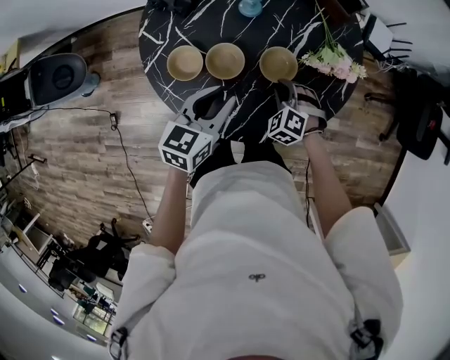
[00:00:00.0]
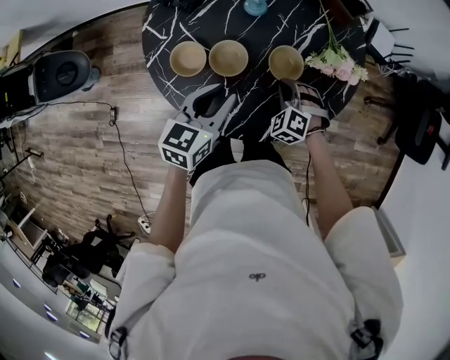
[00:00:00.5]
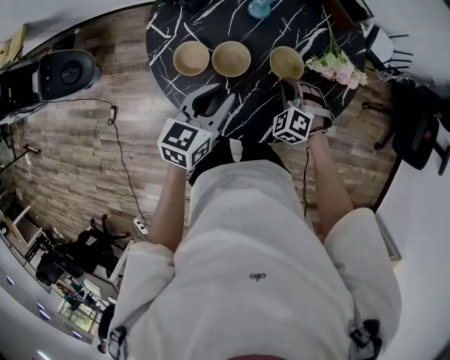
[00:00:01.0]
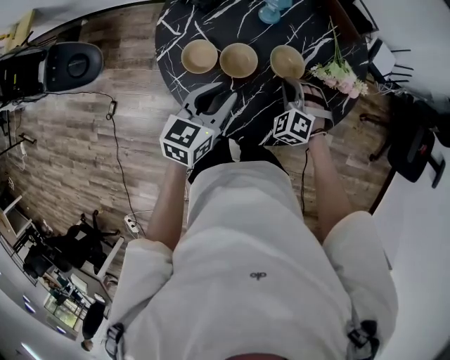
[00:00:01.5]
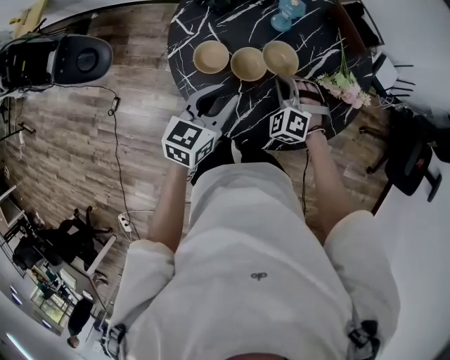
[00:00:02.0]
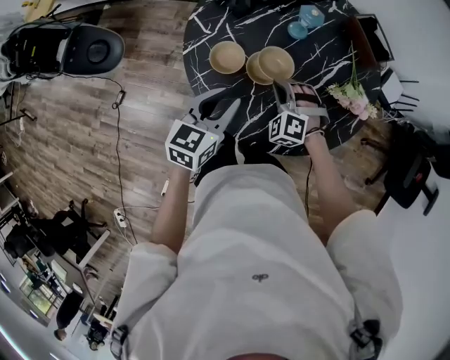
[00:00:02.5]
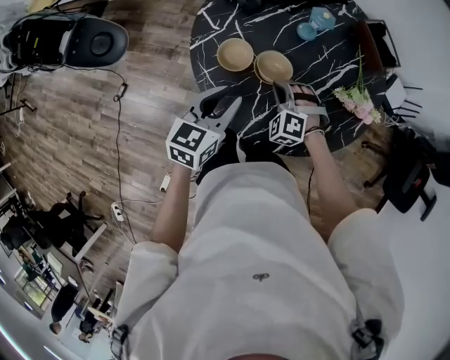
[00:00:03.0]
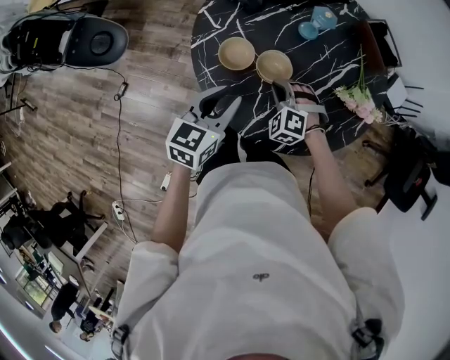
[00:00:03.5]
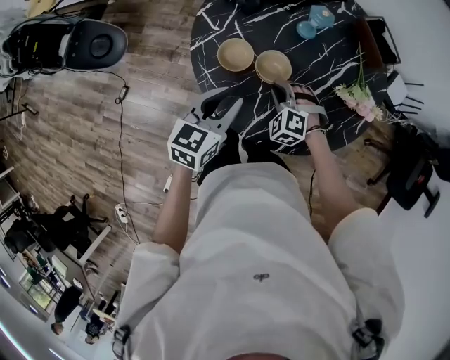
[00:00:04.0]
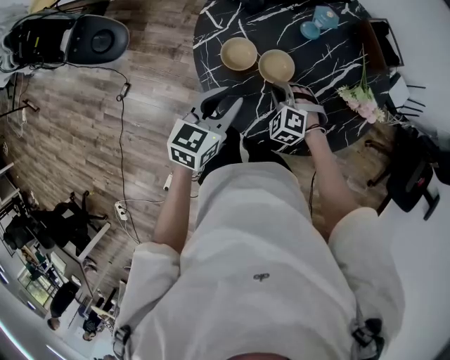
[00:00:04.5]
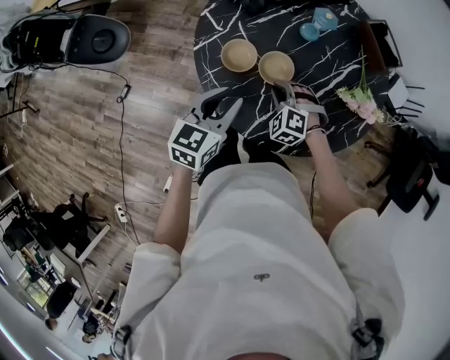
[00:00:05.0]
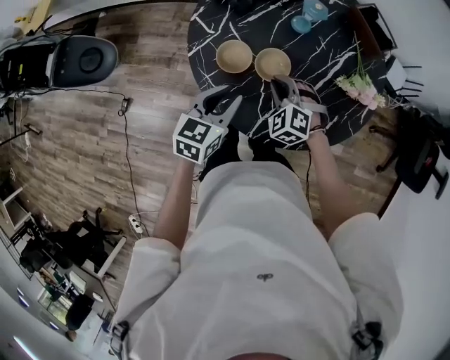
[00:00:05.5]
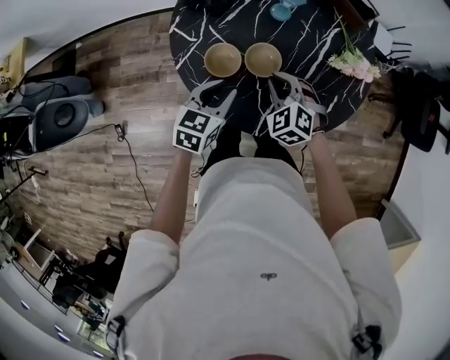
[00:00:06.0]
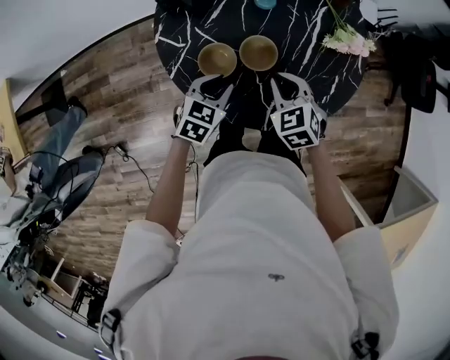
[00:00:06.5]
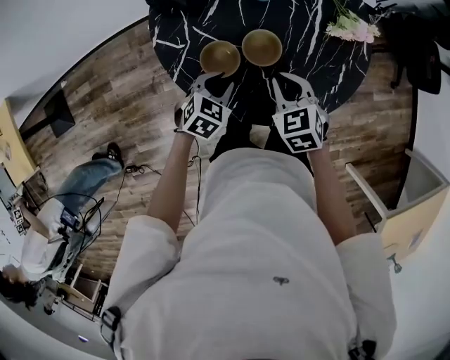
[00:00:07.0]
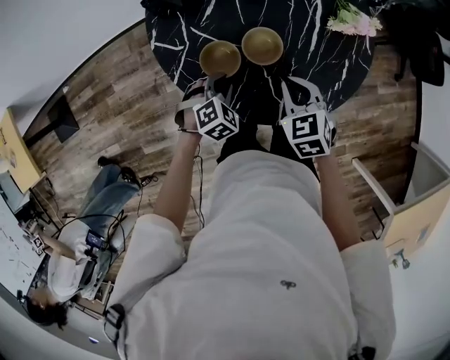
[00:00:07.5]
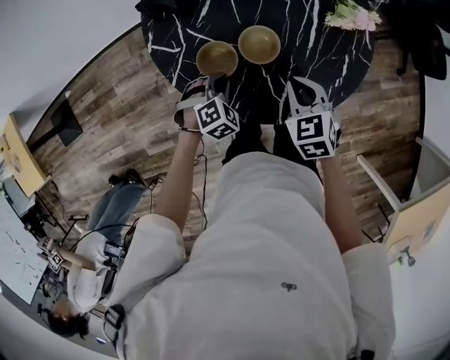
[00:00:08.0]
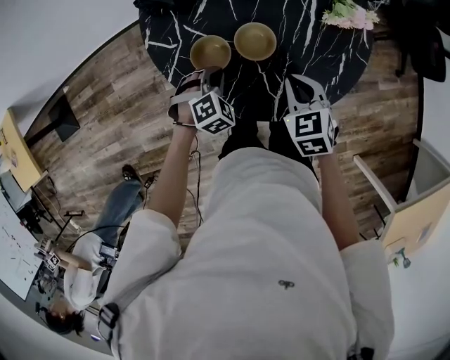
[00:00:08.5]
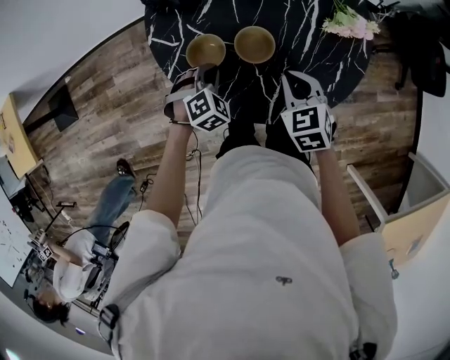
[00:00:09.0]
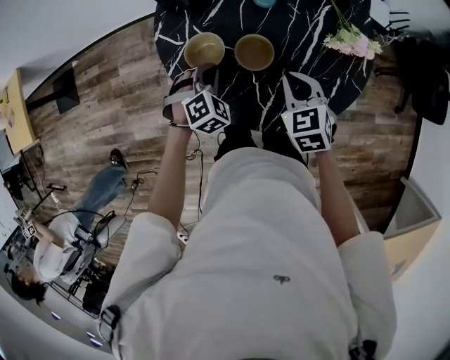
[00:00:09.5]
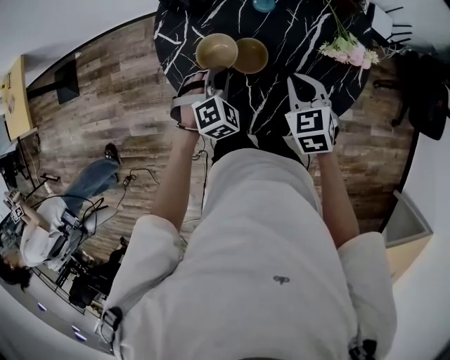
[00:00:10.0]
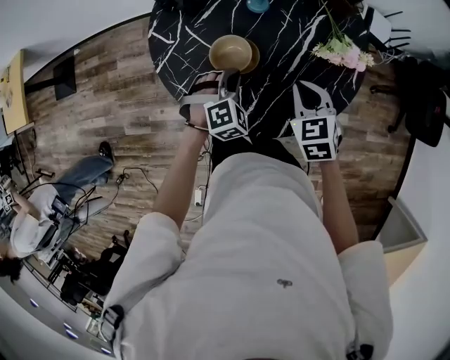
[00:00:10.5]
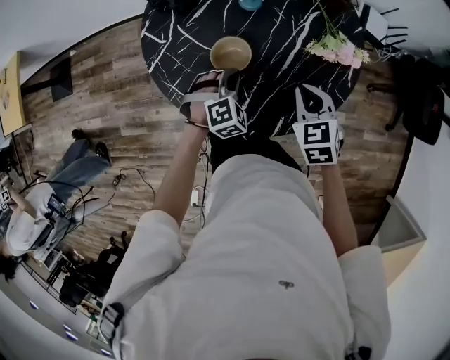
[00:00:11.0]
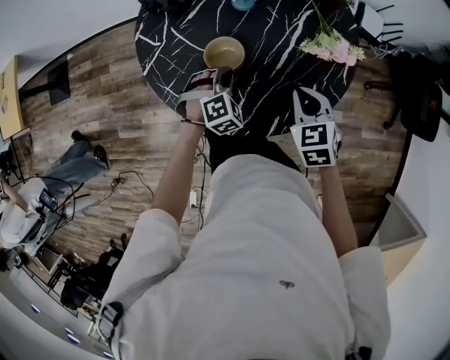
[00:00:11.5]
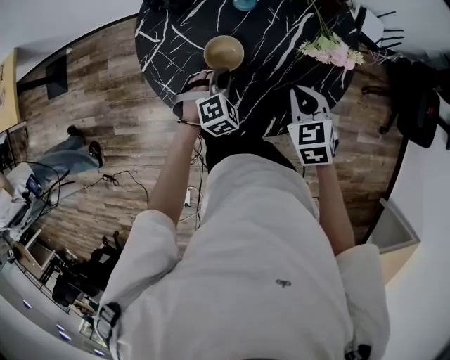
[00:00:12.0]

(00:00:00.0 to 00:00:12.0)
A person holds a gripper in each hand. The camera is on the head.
00:00:00.0 - 00:00:02.0: The left gripper changes place by some 5 cm. Meanwhile the right gripper moves to the left and upward, some 10 cm, and changes its angle by some 20 degrees.
00:00:02.0 - 00:00:04.0: The two grippers go some 5 cm to the left.
00:00:04.0 - 00:00:06.0: The left gripper heads downward, covering some 5 cm, while the right gripper is displaced upward by roughly 5 cm, and turns by roughly 30 degrees.
00:00:06.0 - 00:00:08.0: The left gripper is displaced downward by some 15 cm, and rotates around the line of its fingers by roughly 50 degrees, clockwise from behind, while the right gripper moves approximately 5 cm, and changes its angle by about 40 degrees.
00:00:08.0 - 00:00:10.0: The left gripper moves upward and to the right, roughly 10 cm. Meanwhile the right gripper moves to the right, about 5 cm.
00:00:10.0 - 00:00:12.0: The grippers both shift to the right by roughly 10 cm.

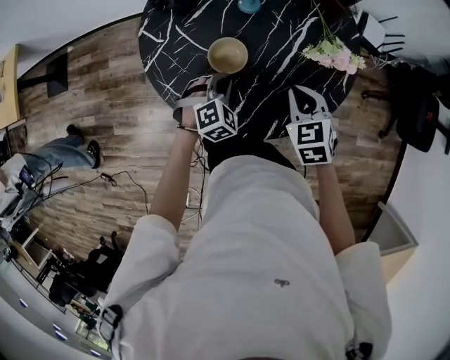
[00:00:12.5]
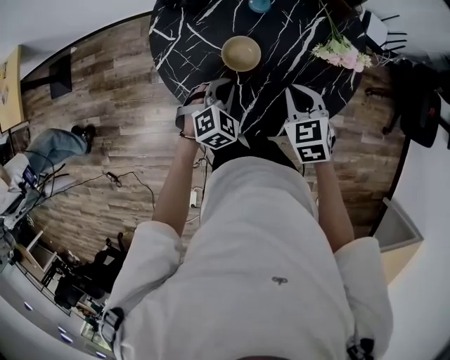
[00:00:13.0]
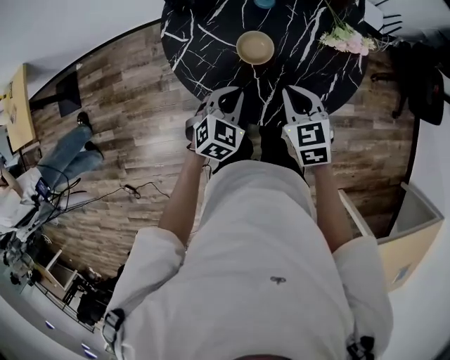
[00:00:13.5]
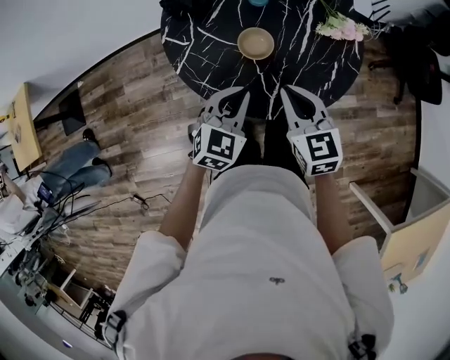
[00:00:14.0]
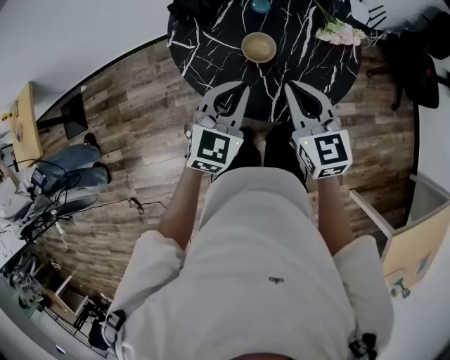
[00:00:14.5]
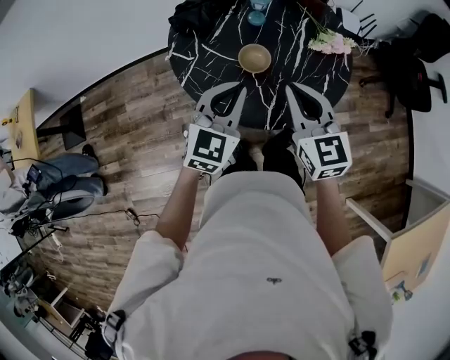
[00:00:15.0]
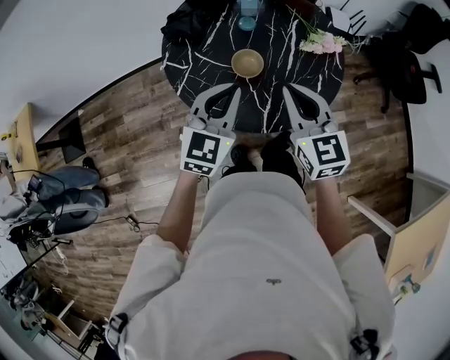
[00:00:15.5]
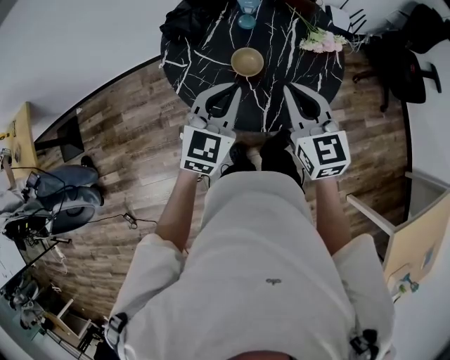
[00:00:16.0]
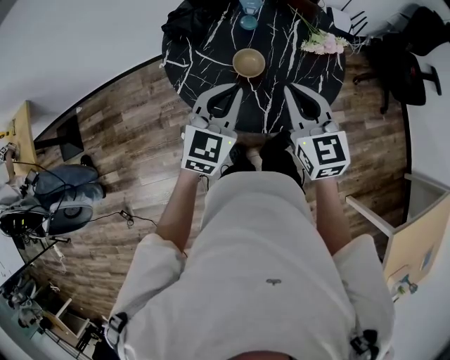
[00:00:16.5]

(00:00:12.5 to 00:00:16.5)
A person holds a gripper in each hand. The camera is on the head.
00:00:12.5 - 00:00:14.5: The right gripper travels upward, to the left and backward by roughly 25 cm, and rotates approximately 30 degrees, while the left gripper is displaced upward, backward and to the left by approximately 25 cm, and points its fingers approximately 30 degrees further upward.
00:00:14.5 - 00:00:16.5: The grippers stay close to where they were, moving slightly.

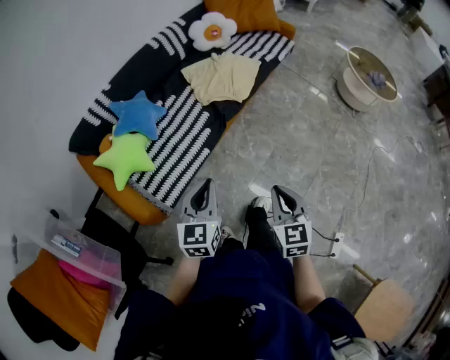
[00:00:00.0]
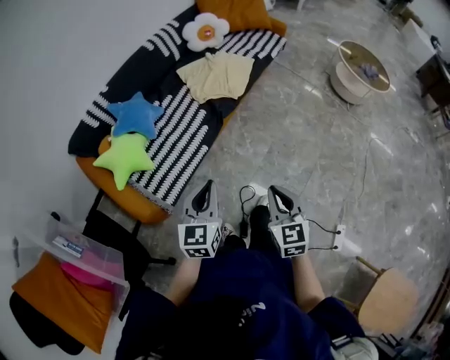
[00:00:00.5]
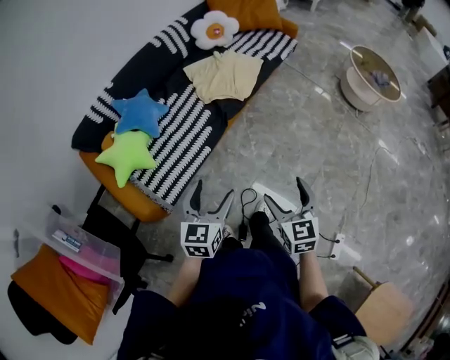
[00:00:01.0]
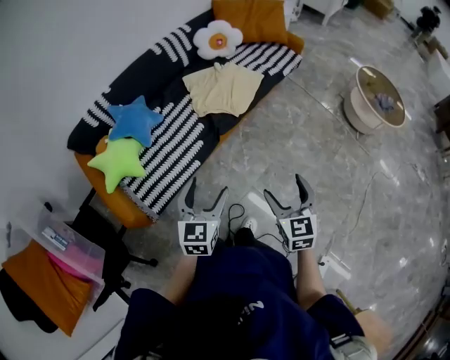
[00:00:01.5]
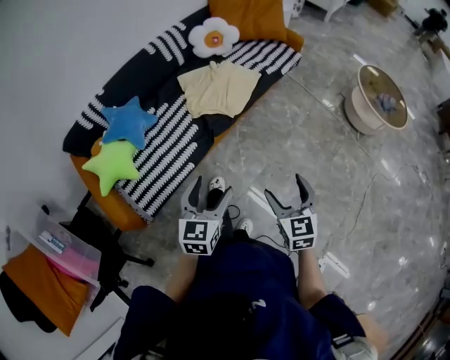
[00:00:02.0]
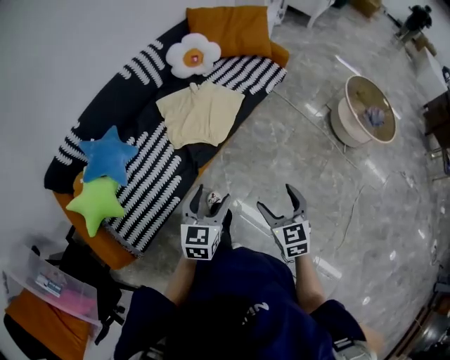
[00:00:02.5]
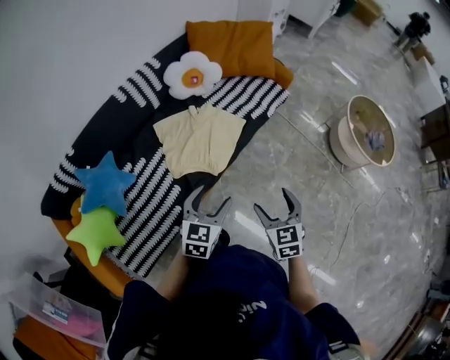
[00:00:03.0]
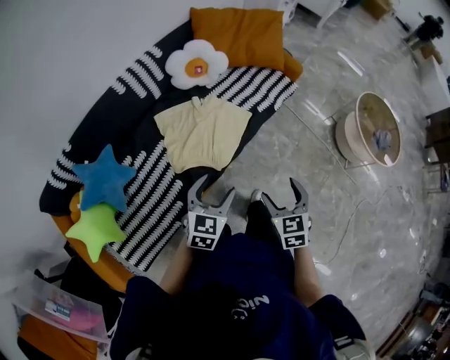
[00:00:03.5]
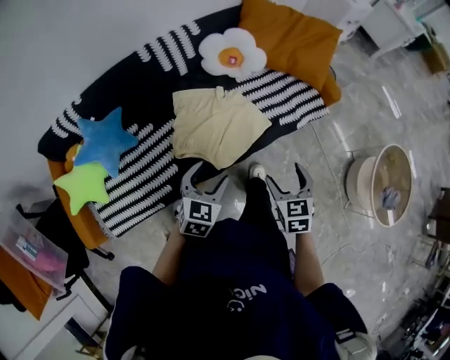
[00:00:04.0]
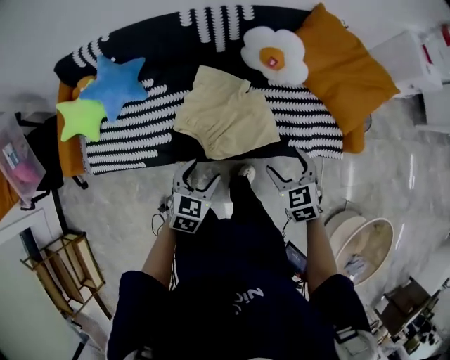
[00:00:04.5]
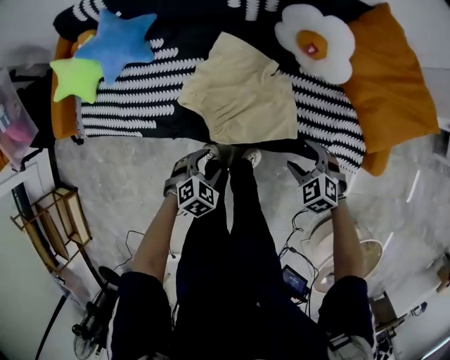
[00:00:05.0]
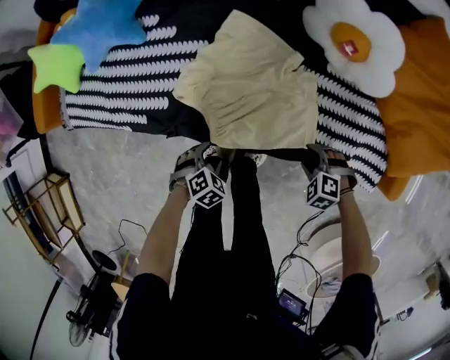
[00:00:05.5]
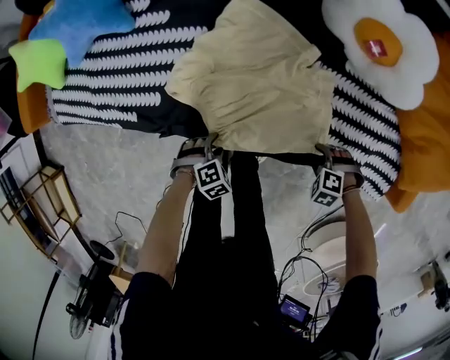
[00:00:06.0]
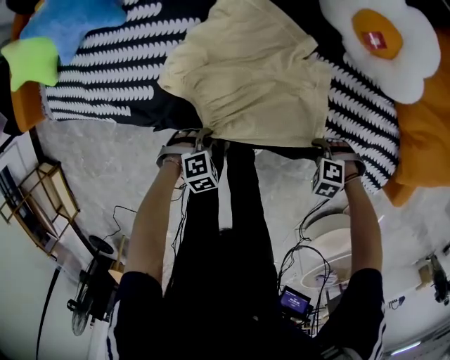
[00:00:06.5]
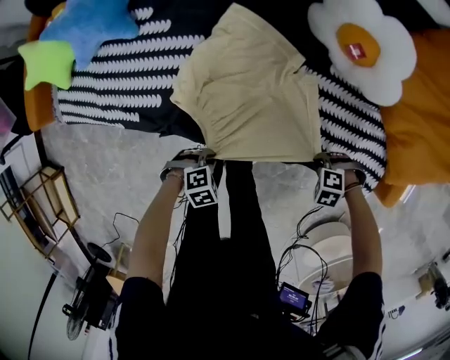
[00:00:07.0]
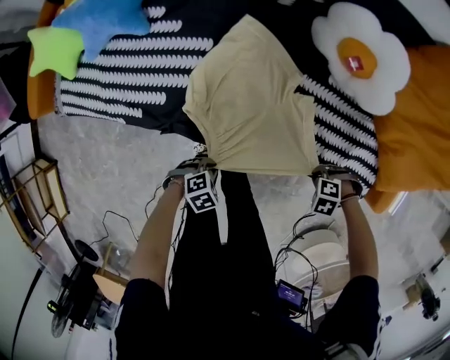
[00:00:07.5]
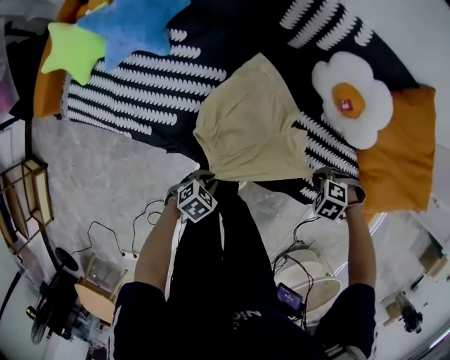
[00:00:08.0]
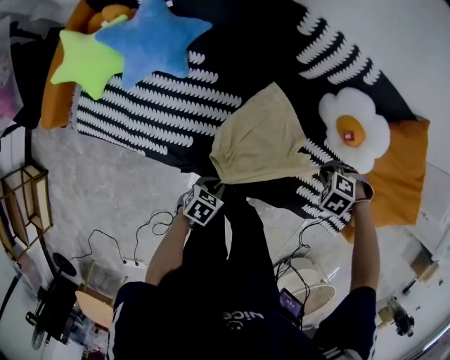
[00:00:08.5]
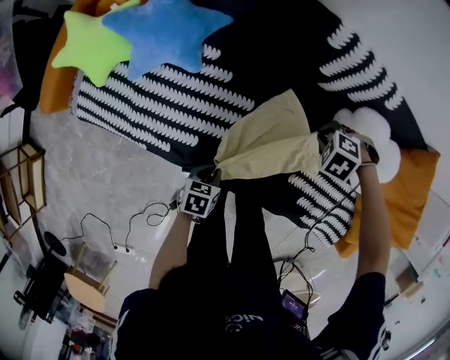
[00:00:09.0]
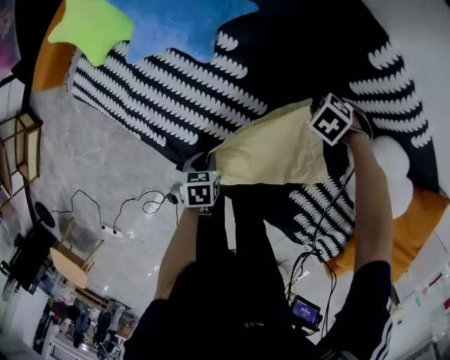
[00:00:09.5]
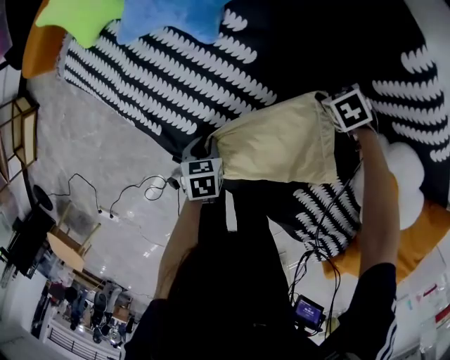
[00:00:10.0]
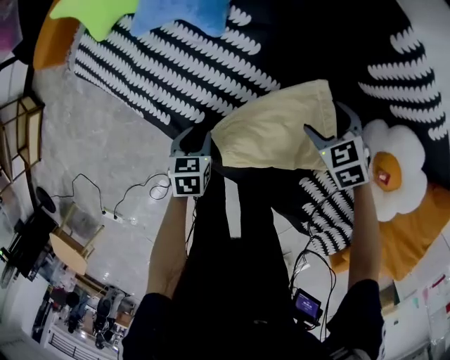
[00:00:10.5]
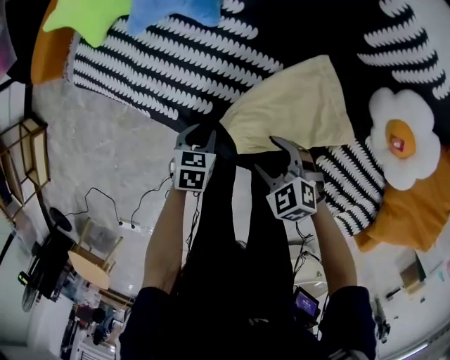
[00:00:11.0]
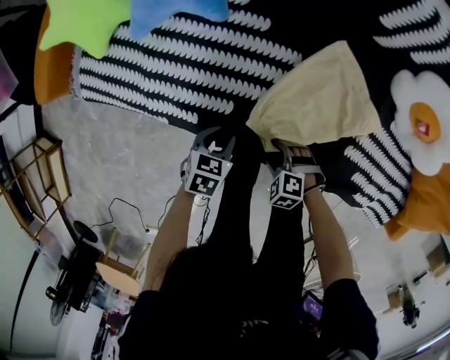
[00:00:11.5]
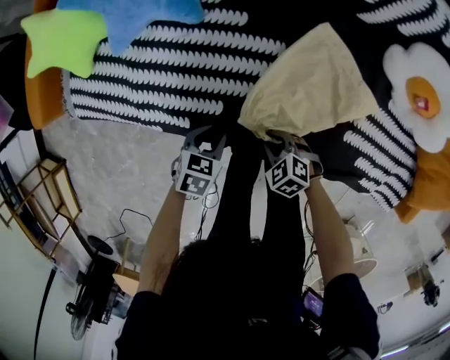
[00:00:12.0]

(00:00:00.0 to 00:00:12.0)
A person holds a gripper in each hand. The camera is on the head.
00:00:00.0 - 00:00:02.0: The two grippers go roughly 20 cm to the right and forward. The right gripper opens its fingers; the left gripper opens up.
00:00:02.0 - 00:00:04.0: Both grippers are carried forward, approximately 50 cm. The right gripper swivels roughly 20 degrees.
00:00:04.0 - 00:00:06.0: Both grippers travel together downward, about 40 cm. The left gripper angles its fingers downward, by approximately 50 degrees, while the right gripper rolls counterclockwise, seen from behind, by roughly 90 degrees, and closes up.
00:00:06.0 - 00:00:08.0: Both grippers move upward, roughly 15 cm. The right gripper closes its fingers. The left gripper changes its angle by some 40 degrees, and closes.
00:00:08.0 - 00:00:10.0: The right gripper changes place by about 50 cm, and opens up. Meanwhile the left gripper ends up approximately 25 cm from where it was, and rotates around the line of its fingers by roughly 60 degrees, counterclockwise from behind.
00:00:10.0 - 00:00:12.0: The right gripper goes upward and returns, approximately 15 cm each way, turns by approximately 20 degrees, and closes its fingers. Meanwhile the left gripper moves approximately 10 cm, and rotates around the line of its fingers by approximately 40 degrees, clockwise from behind.
